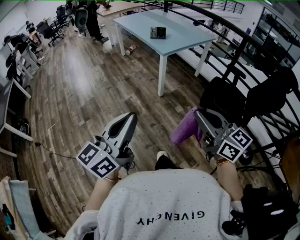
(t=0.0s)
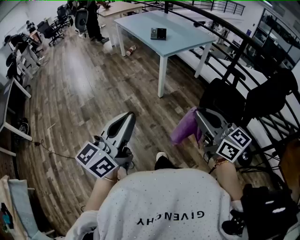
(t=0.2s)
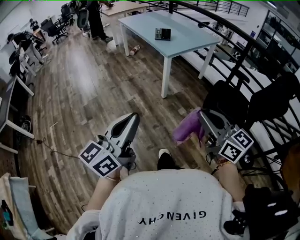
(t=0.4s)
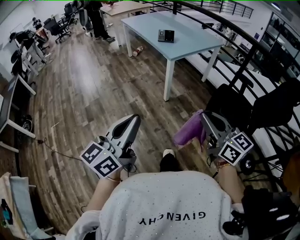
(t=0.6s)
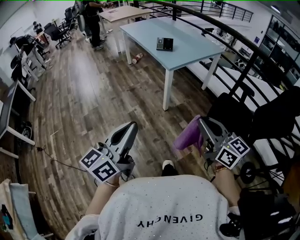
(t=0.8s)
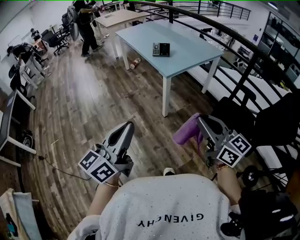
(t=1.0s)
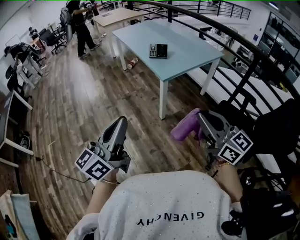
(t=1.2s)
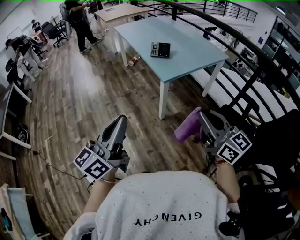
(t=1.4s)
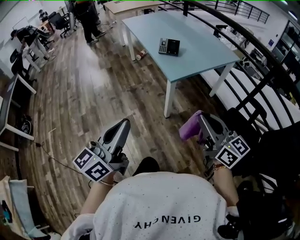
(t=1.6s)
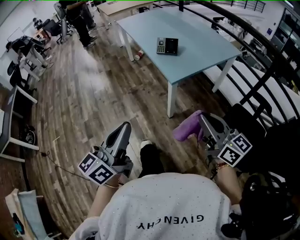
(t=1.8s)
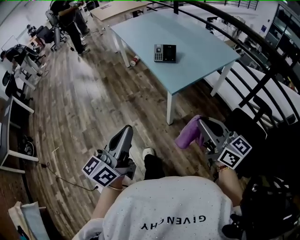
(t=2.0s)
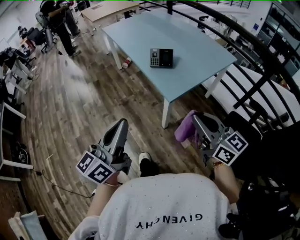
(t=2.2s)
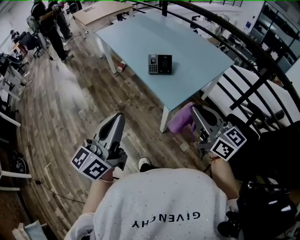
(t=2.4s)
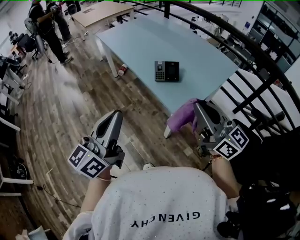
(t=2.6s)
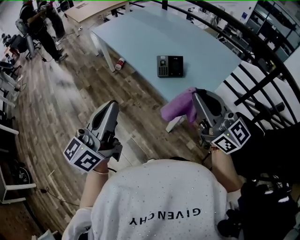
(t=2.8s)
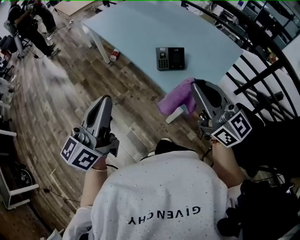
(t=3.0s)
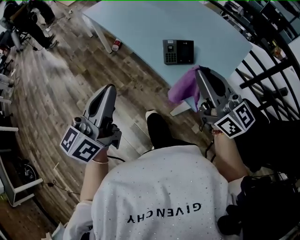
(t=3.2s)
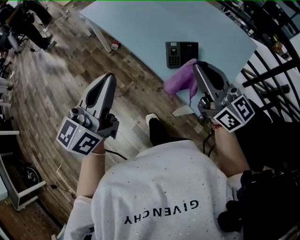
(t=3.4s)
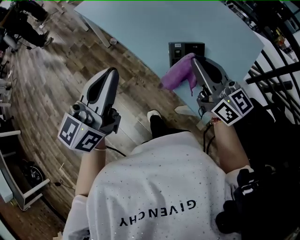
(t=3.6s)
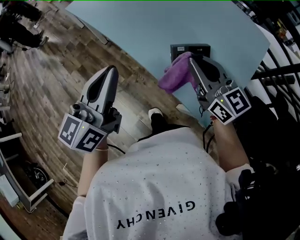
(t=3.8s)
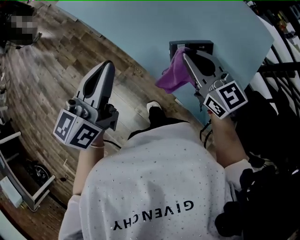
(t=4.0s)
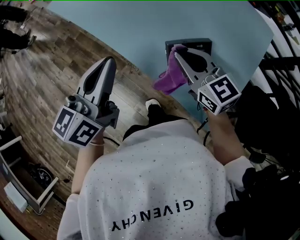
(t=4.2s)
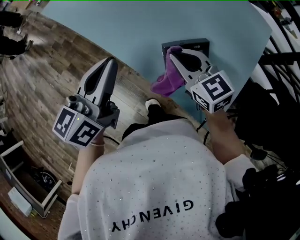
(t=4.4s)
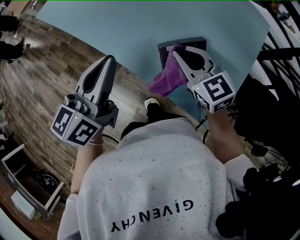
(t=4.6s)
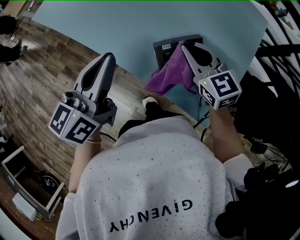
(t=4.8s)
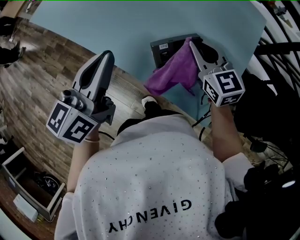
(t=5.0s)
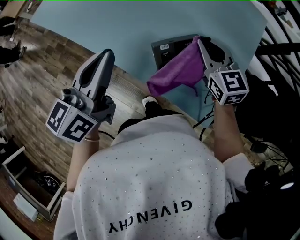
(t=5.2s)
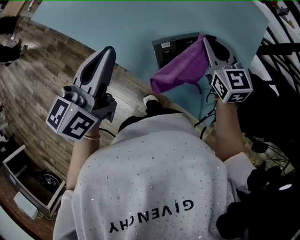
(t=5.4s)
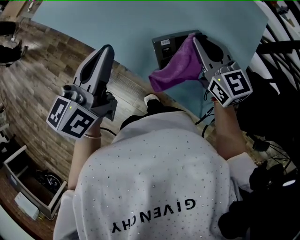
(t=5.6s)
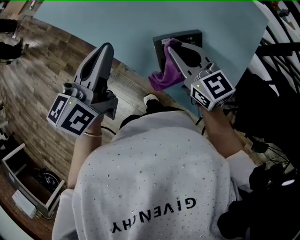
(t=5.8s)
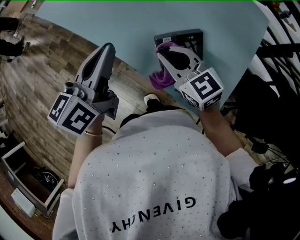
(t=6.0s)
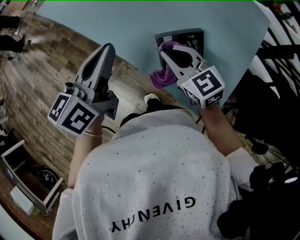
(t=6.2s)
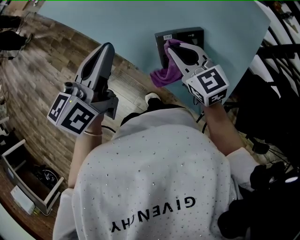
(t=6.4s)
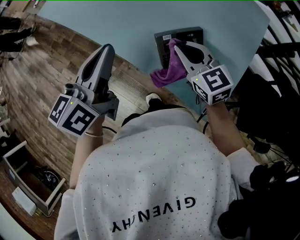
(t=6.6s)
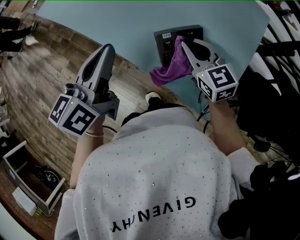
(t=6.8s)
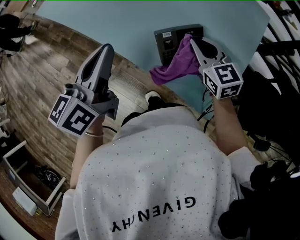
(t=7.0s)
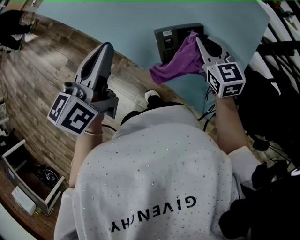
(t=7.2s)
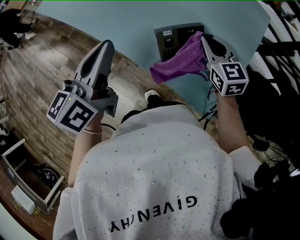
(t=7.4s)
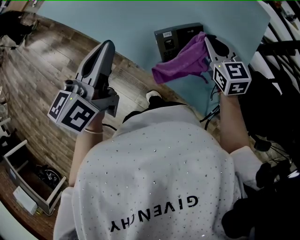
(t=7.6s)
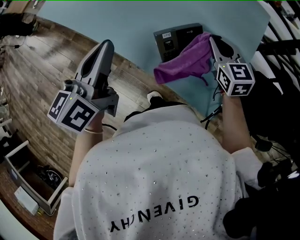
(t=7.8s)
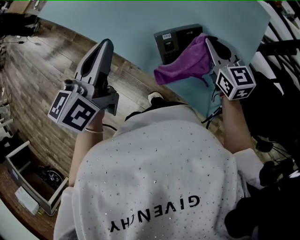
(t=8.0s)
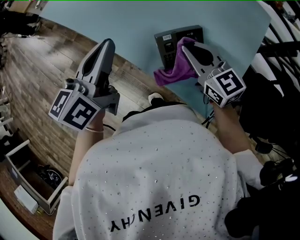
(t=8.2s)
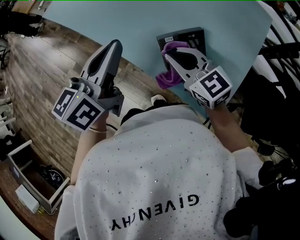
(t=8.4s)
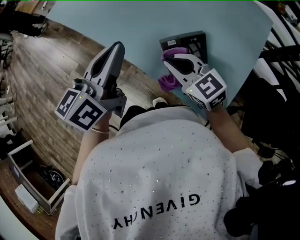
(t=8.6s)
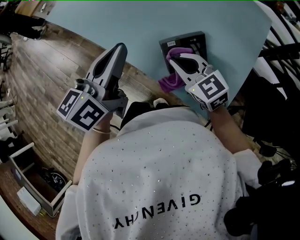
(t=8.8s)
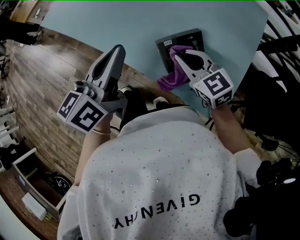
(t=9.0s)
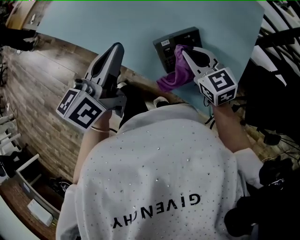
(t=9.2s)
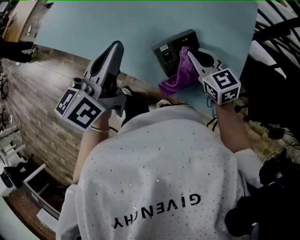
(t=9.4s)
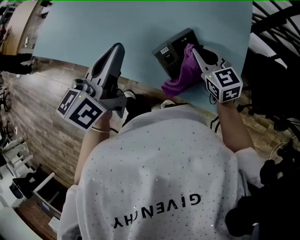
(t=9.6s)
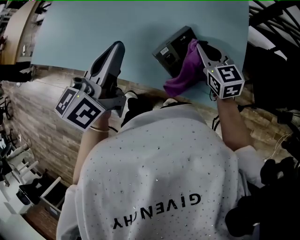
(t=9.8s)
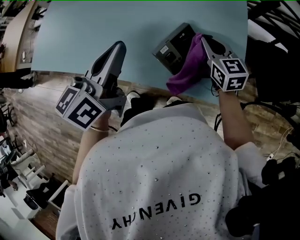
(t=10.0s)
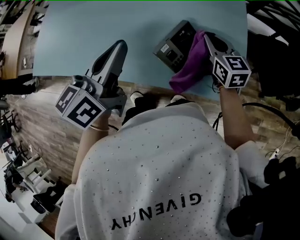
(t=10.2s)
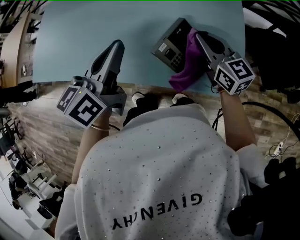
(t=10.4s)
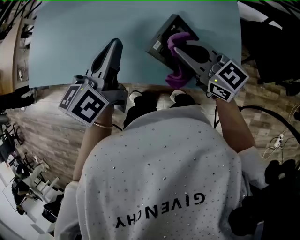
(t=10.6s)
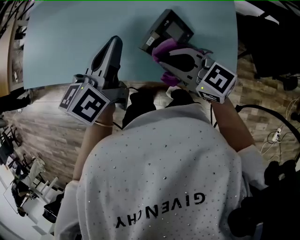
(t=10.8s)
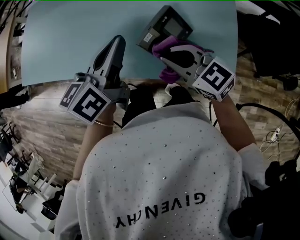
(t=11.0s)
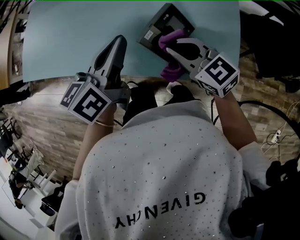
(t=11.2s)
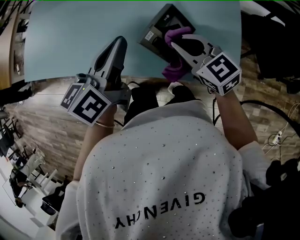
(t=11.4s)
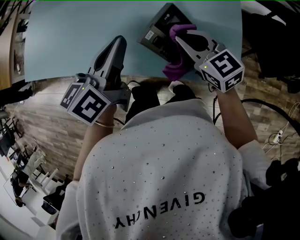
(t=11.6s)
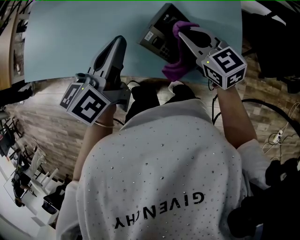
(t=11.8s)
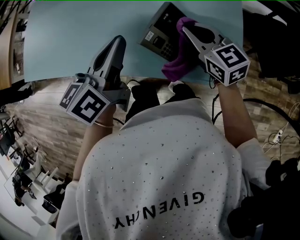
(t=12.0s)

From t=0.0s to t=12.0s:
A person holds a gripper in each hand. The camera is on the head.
From t=0.0s to t=1.6s: The grippers both shift forward by roughly 35 cm.
From t=1.6s to t=3.0s: Both grippers are carried forward, roughly 50 cm.
From t=3.0s to t=4.4s: The right gripper travels forward and downward by some 40 cm, and tilts its fingers roughly 30 degrees downward. Meanwhile the left gripper shifts about 30 cm forward, and turns by approximately 20 degrees.
From t=4.4s to t=6.0s: The right gripper moves roughly 15 cm to the right and comes back.
From t=6.0s to t=7.6s: The right gripper shifts about 15 cm to the right, and changes its angle by some 30 degrees.
From t=7.6s to t=9.0s: The right gripper is displaced to the left by about 10 cm.
From t=9.0s to t=10.4s: The left gripper moves roughly 10 cm, and turns by some 30 degrees, while the right gripper ends up some 10 cm from where it was, and turns by roughly 40 degrees.
From t=10.4s to t=12.0s: The left gripper changes place by some 5 cm. Meanwhile the right gripper moves about 10 cm to the left and comes back.

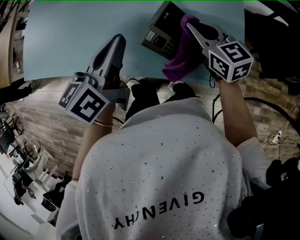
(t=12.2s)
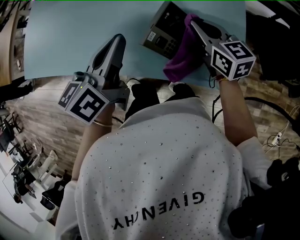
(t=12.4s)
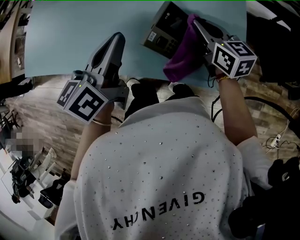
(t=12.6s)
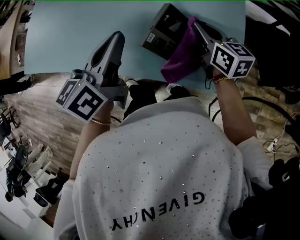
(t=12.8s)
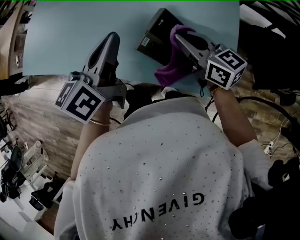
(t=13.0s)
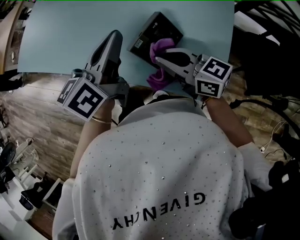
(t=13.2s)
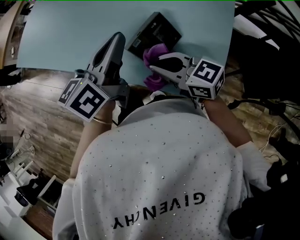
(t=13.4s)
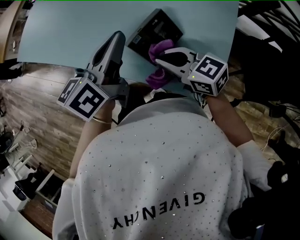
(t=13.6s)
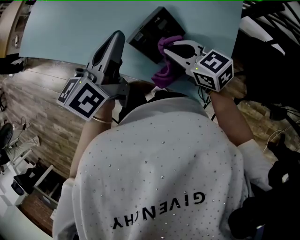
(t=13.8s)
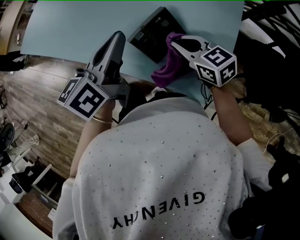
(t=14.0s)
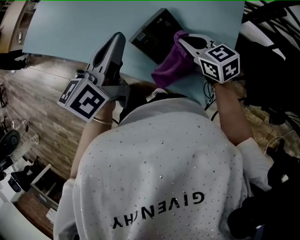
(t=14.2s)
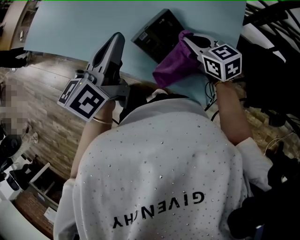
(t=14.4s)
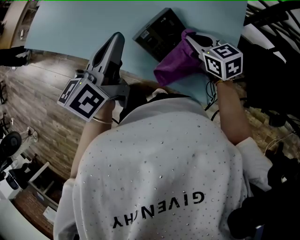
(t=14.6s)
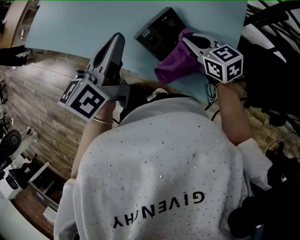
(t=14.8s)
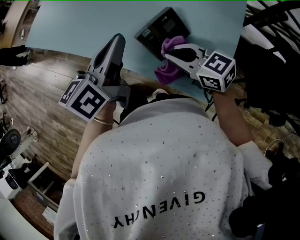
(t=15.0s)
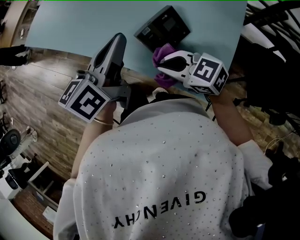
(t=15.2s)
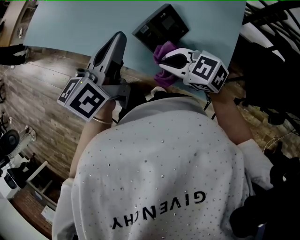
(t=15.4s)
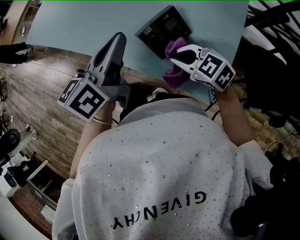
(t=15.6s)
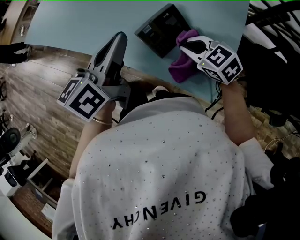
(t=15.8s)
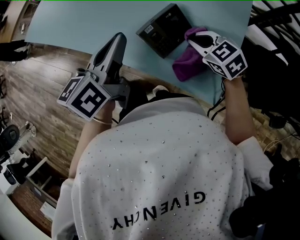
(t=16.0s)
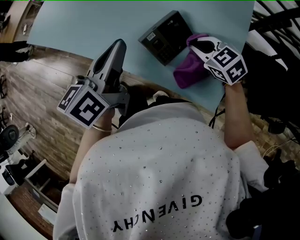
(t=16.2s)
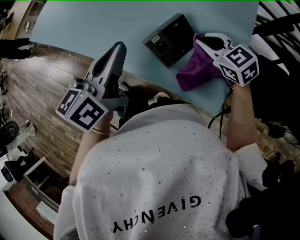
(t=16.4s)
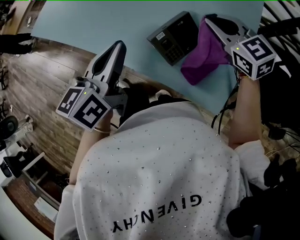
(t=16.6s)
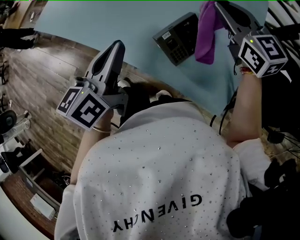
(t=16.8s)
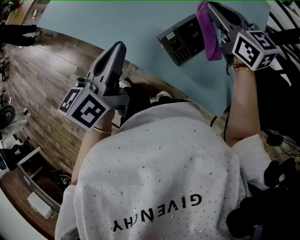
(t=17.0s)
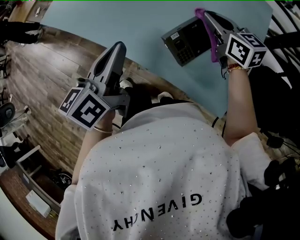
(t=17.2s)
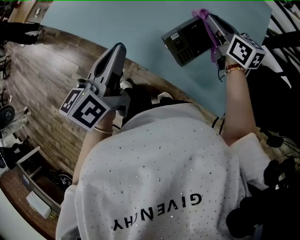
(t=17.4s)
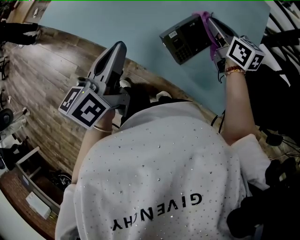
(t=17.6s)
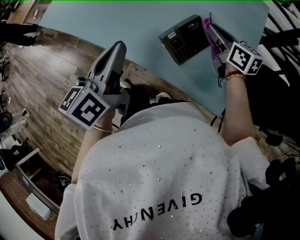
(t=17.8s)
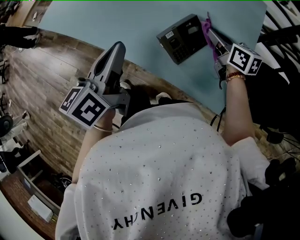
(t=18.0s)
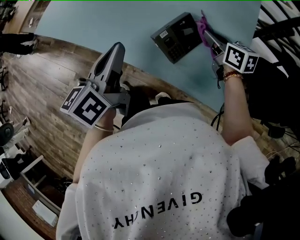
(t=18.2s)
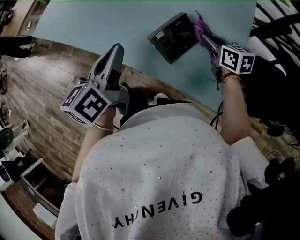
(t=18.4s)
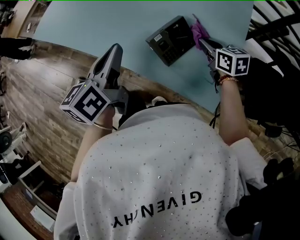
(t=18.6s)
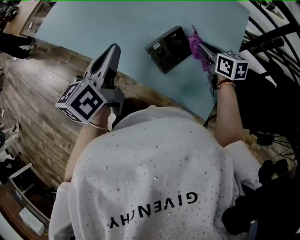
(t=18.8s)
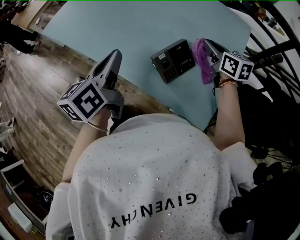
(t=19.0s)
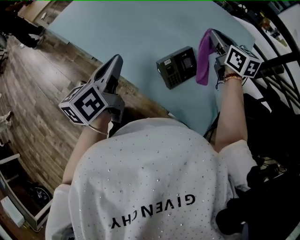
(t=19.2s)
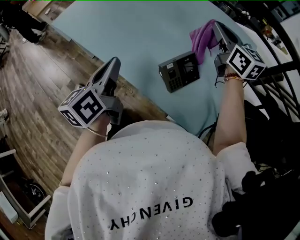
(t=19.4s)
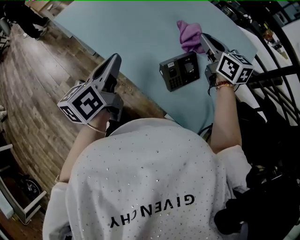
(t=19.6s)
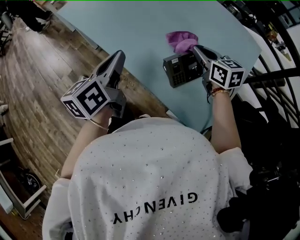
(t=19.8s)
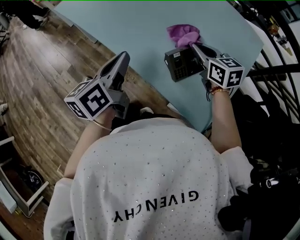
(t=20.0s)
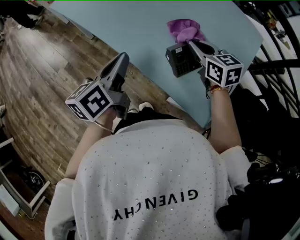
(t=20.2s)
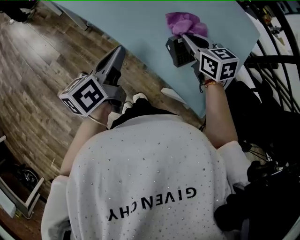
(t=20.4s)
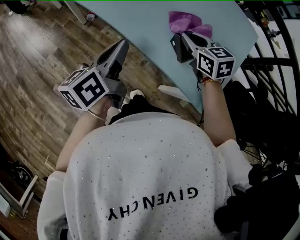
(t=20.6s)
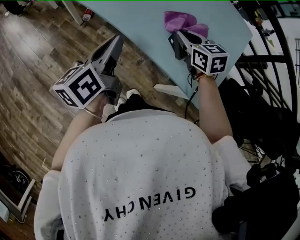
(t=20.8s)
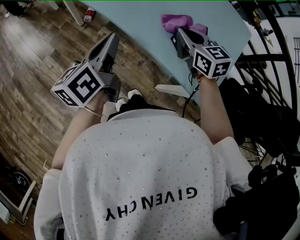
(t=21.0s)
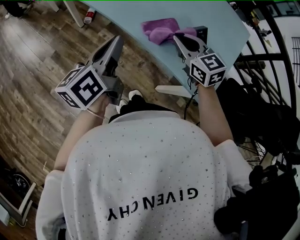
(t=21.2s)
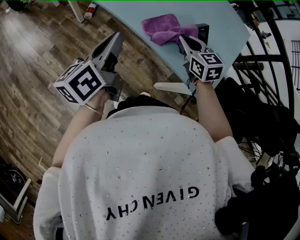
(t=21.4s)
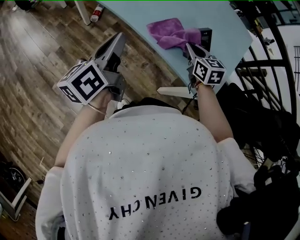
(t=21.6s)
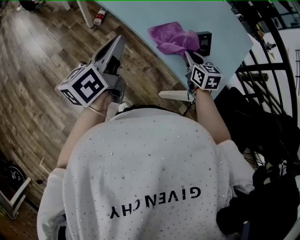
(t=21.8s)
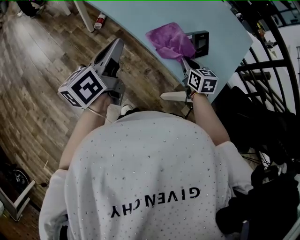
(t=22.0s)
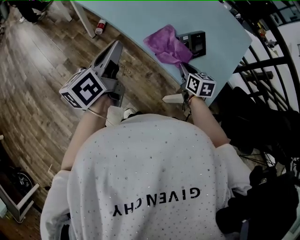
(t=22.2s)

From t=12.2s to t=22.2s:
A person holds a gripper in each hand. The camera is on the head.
From t=12.2s to t=13.6s: The right gripper ends up approximately 10 cm from where it was, and swivels approximately 40 degrees.
From t=13.6s to t=15.0s: The right gripper goes to the right and returns, some 10 cm each way.
From t=15.0s to t=16.4s: The right gripper shifts some 10 cm to the right and forward, and turns by roughly 20 degrees.
From t=16.4s to t=18.0s: The right gripper travels upward and back again, some 15 cm each way, and changes its angle by roughly 40 degrees. The left gripper is displaced to the left by approximately 5 cm.
From t=18.0s to t=19.4s: The right gripper heads upward and forward, covering roughly 20 cm, and swivels some 30 degrees.
From t=19.4s to t=20.8s: The left gripper moves to the left and backward, approximately 10 cm, while the right gripper travels to the left, downward and backward by about 25 cm, and turns by about 30 degrees.
From t=20.8s to t=22.2s: The right gripper heads backward and downward, covering roughly 10 cm; the left gripper changes place by roughly 5 cm.

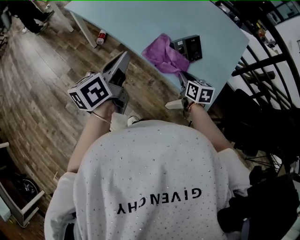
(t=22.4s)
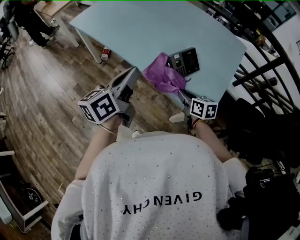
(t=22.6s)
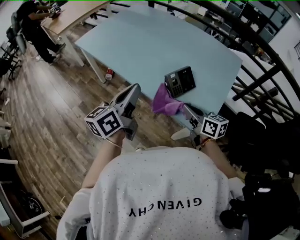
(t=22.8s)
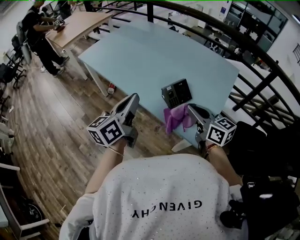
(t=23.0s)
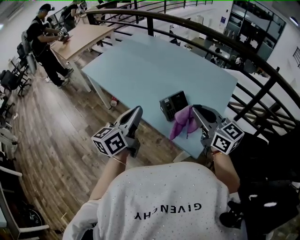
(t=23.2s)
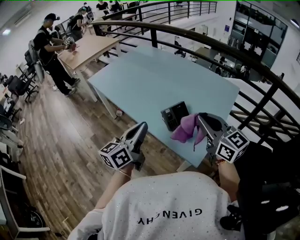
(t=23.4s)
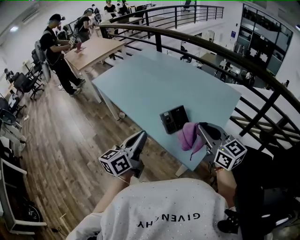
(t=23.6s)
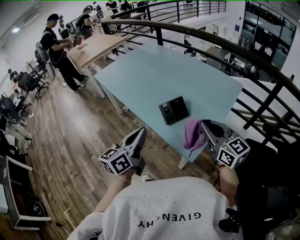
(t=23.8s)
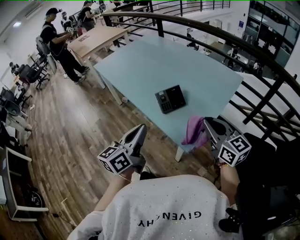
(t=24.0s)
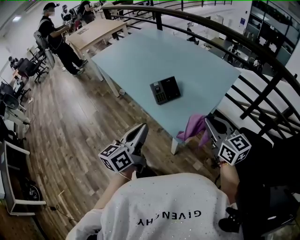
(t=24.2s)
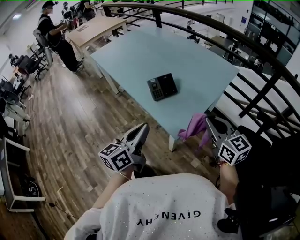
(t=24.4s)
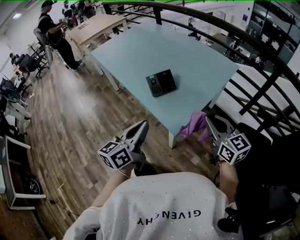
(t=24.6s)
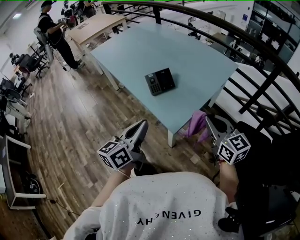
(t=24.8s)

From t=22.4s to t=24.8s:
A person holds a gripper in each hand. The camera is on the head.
From t=22.4s to t=23.6s: The right gripper travels upward by some 30 cm, and tips its fingers upward by some 30 degrees. Meanwhile the left gripper heads to the right, backward and upward, covering roughly 15 cm.
From t=23.6s to t=24.8s: The right gripper is displaced to the right, backward and downward by roughly 20 cm. Meanwhile the left gripper shifts approximately 20 cm backward and to the right.
